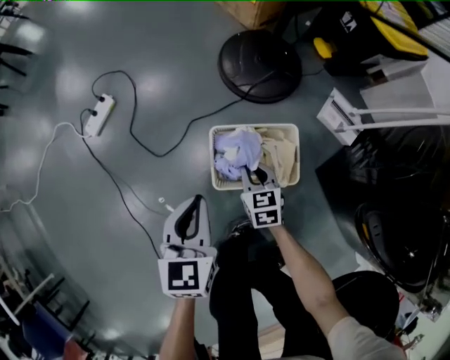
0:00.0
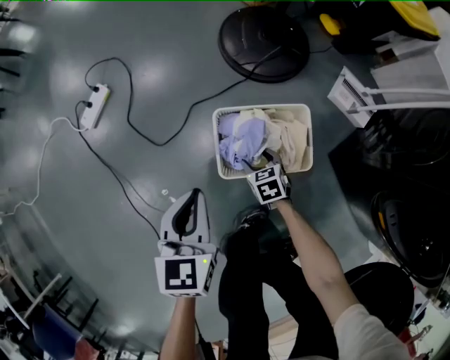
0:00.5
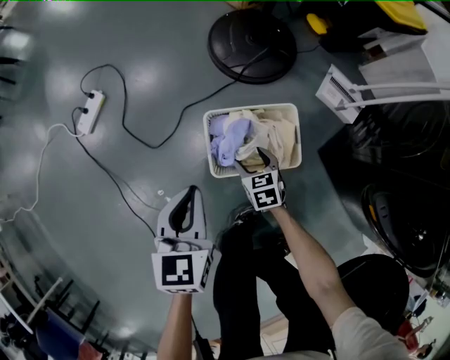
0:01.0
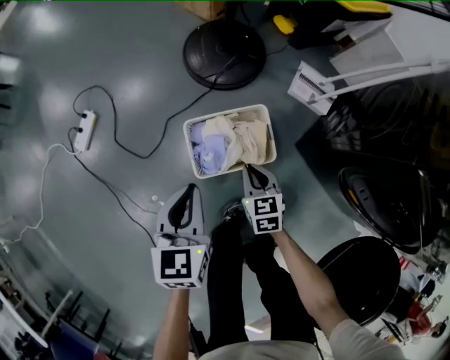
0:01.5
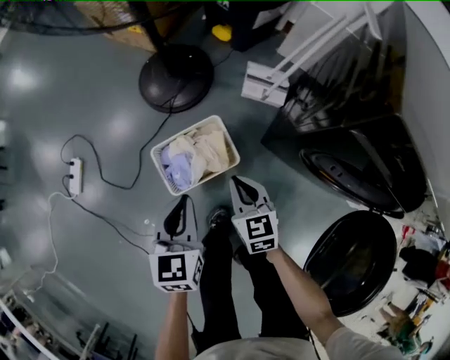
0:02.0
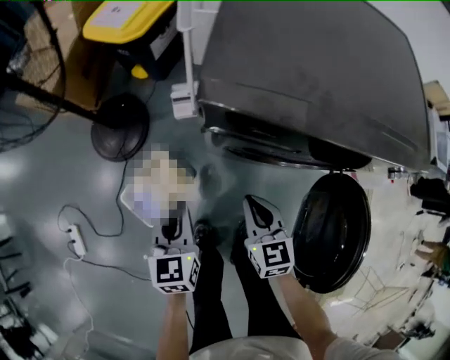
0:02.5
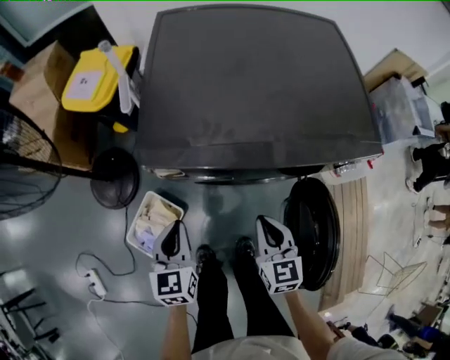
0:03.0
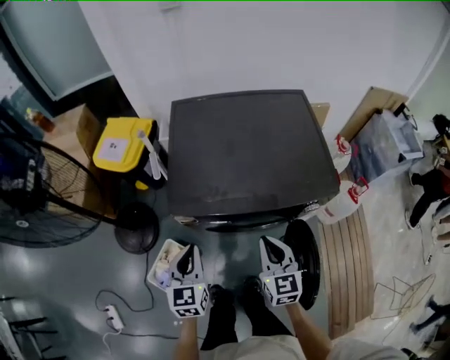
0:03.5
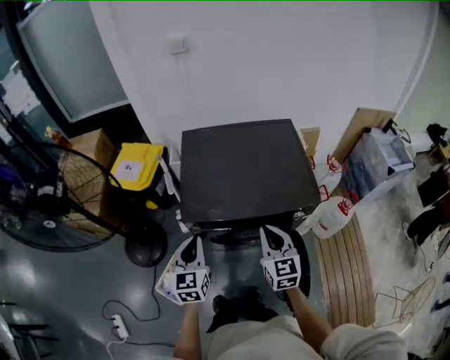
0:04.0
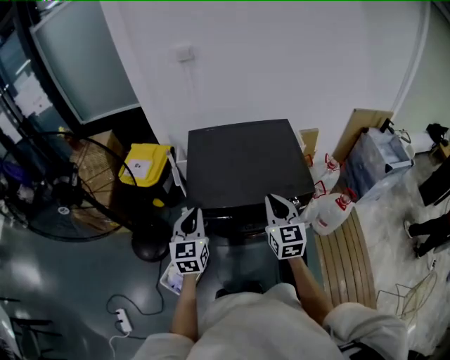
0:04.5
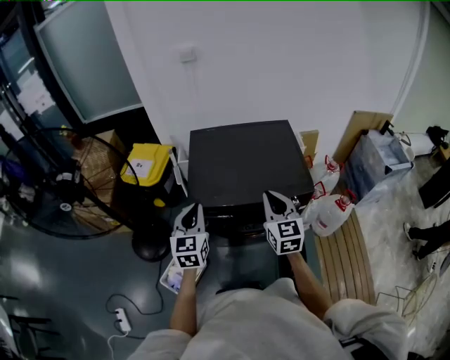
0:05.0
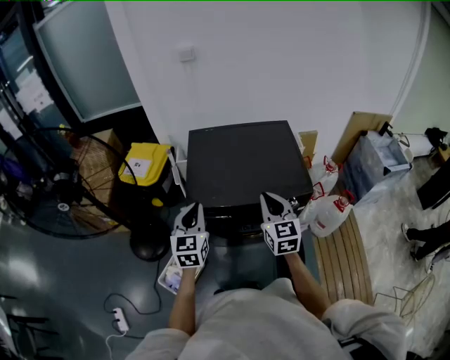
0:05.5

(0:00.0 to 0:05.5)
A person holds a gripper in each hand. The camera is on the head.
0:00.0 - 0:02.0: The right gripper is displaced upward by some 20 cm, swivels roughly 20 degrees, and opens, then closes again; the left gripper ends up some 20 cm from where it was, and swivels roughly 20 degrees.
0:02.0 - 0:03.5: The right gripper changes place by approximately 50 cm, and turns by some 50 degrees; the left gripper ends up approximately 40 cm from where it was, and swivels some 40 degrees.
0:03.5 - 0:05.5: The two grippers go some 20 cm upward.

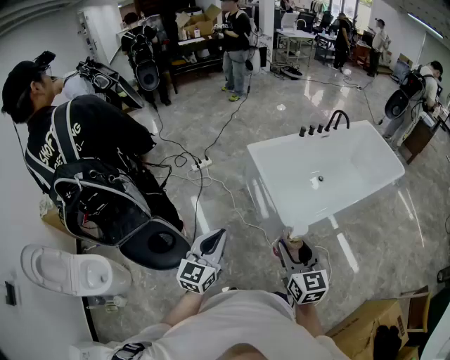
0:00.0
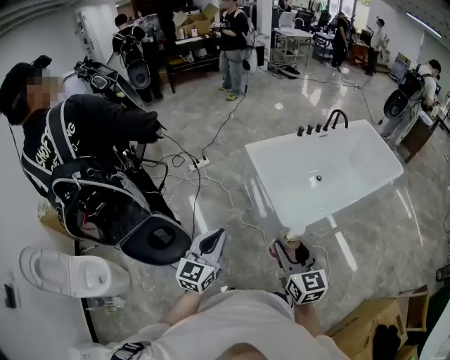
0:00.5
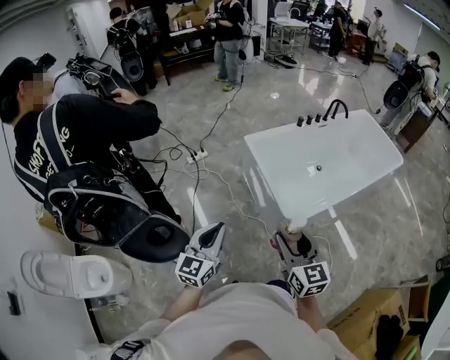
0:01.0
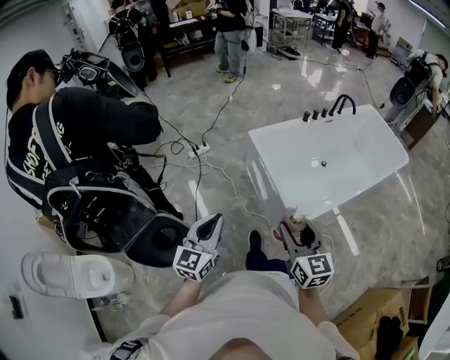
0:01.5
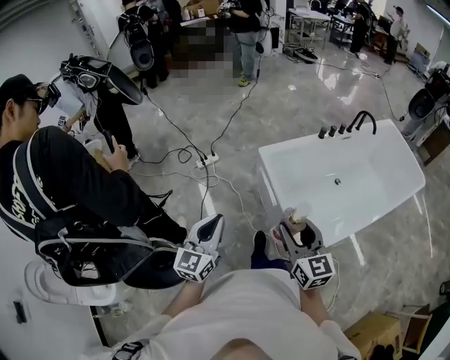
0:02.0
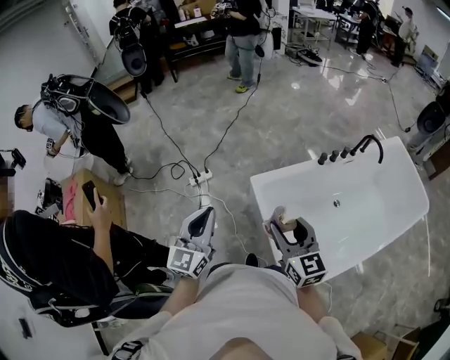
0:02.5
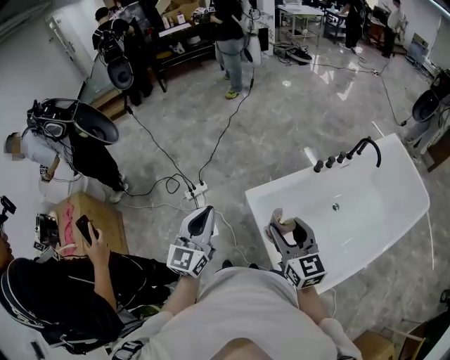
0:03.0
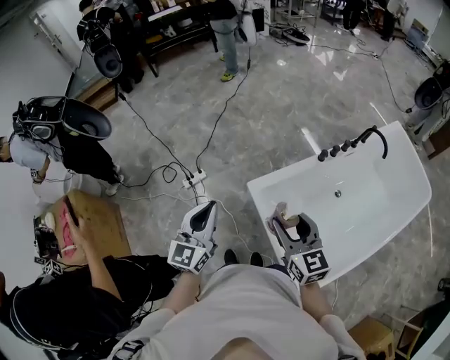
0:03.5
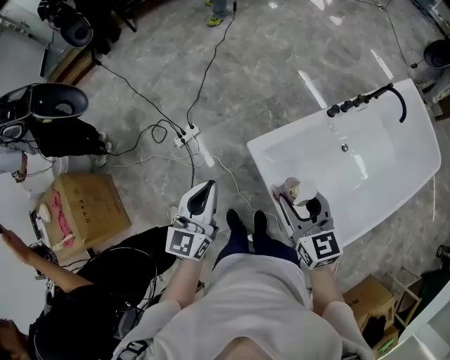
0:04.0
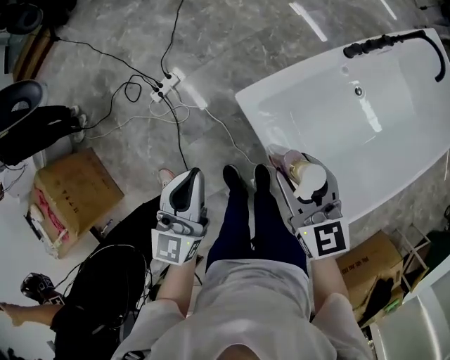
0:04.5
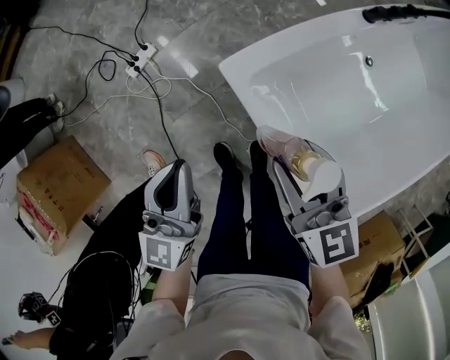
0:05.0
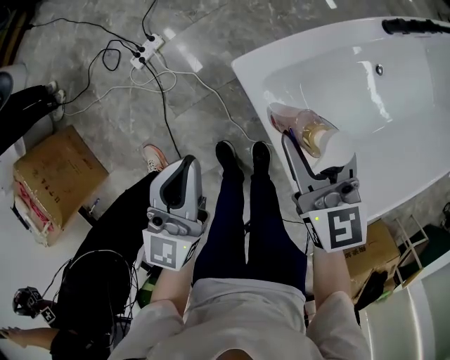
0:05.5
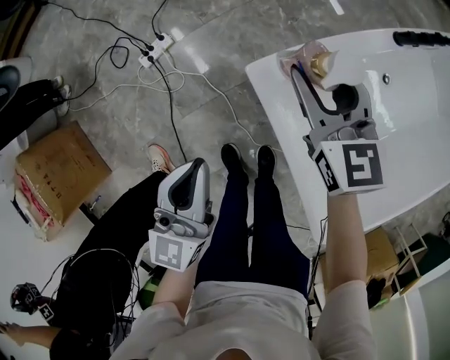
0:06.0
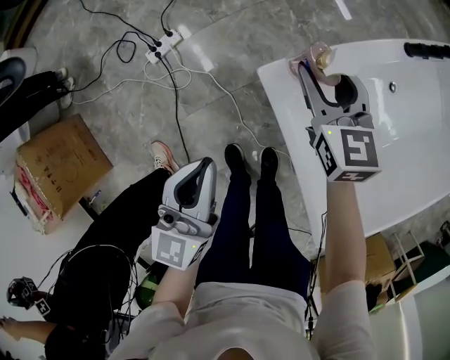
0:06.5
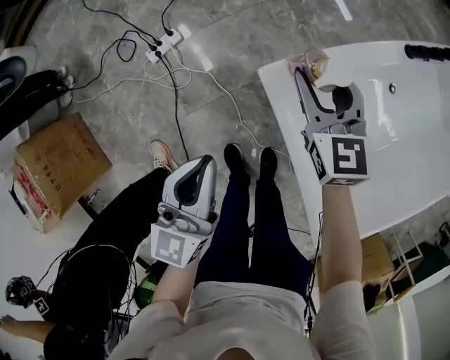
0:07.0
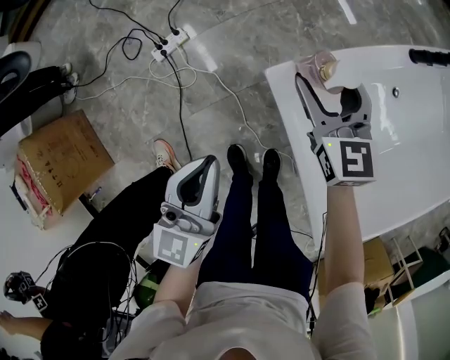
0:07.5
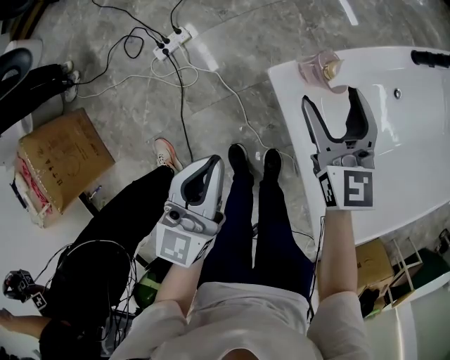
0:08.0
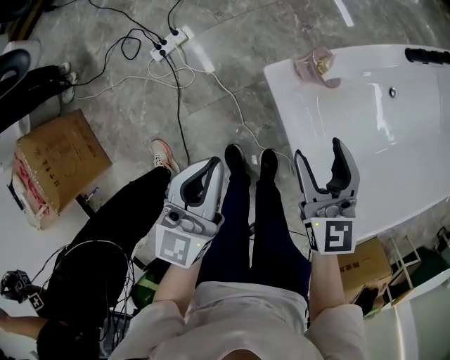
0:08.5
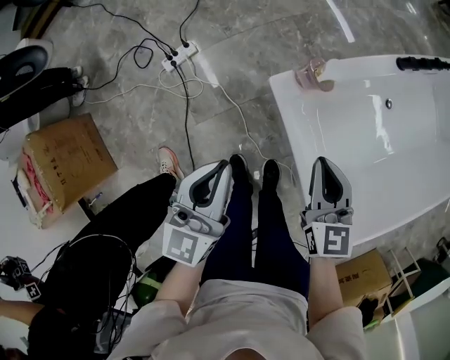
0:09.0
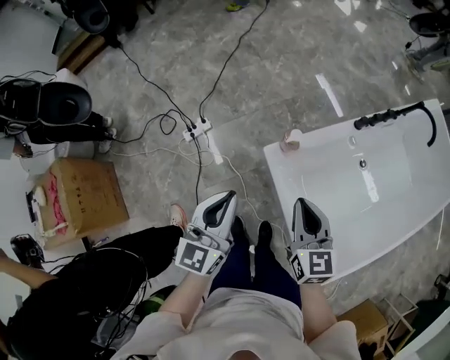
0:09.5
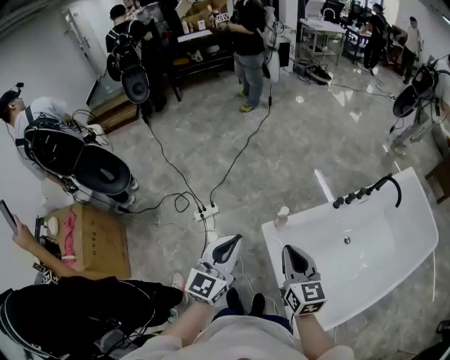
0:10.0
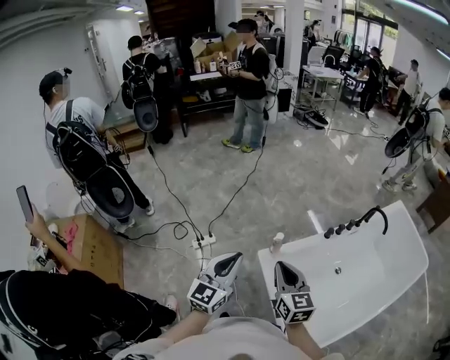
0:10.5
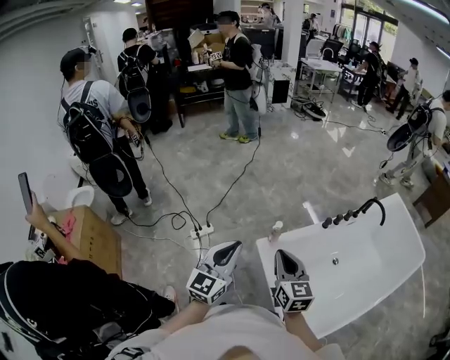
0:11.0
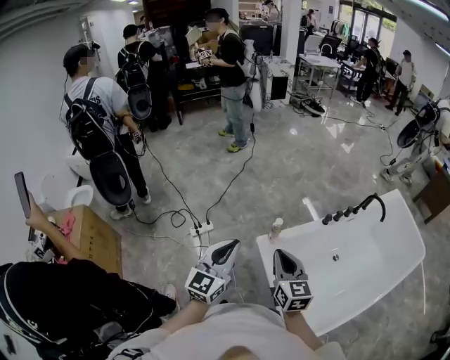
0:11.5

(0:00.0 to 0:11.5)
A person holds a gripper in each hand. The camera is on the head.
0:00.0 - 0:02.0: The grippers both shift forward by roughly 25 cm.
0:02.0 - 0:04.0: The two grippers go about 40 cm forward.
0:04.0 - 0:06.0: The right gripper travels downward and forward by some 35 cm. The left gripper travels downward by approximately 25 cm.
0:06.0 - 0:07.5: There are only small adjustments of the grippers.
0:07.5 - 0:09.5: The left gripper moves upward, approximately 20 cm. The right gripper moves upward and backward, roughly 25 cm, and closes its fingers.
0:09.5 - 0:11.5: The right gripper moves upward, approximately 20 cm; the left gripper travels upward and backward by roughly 20 cm.

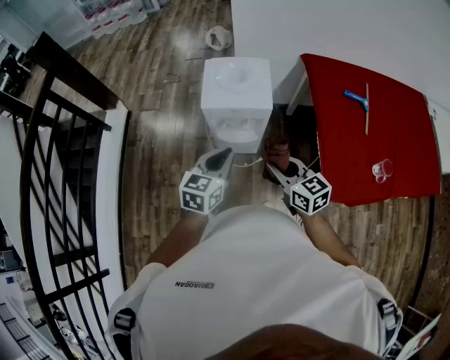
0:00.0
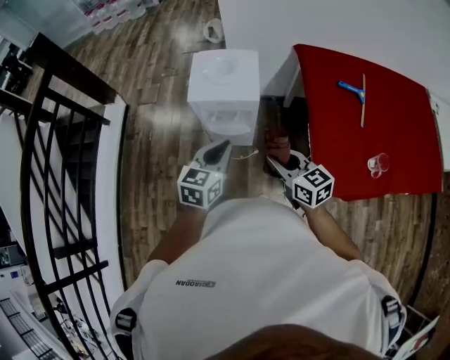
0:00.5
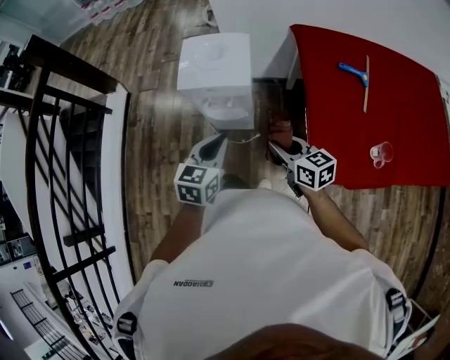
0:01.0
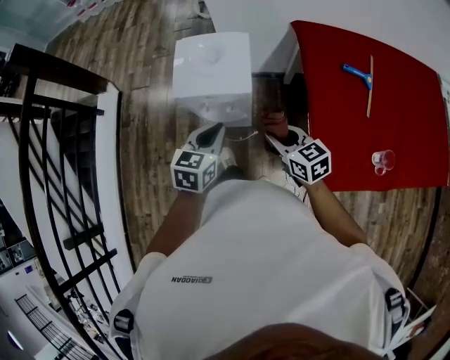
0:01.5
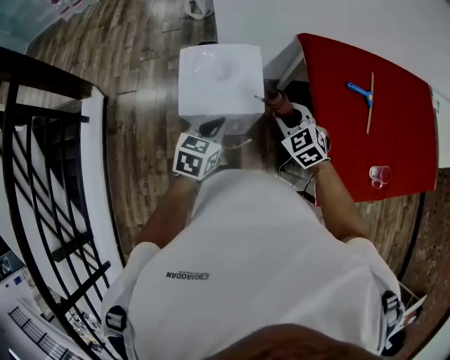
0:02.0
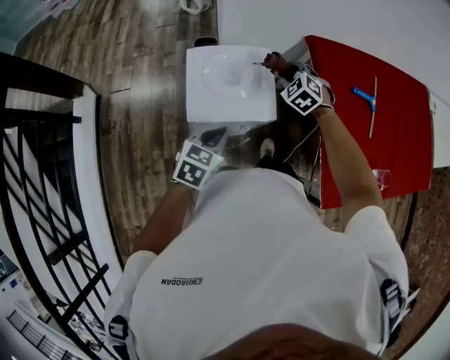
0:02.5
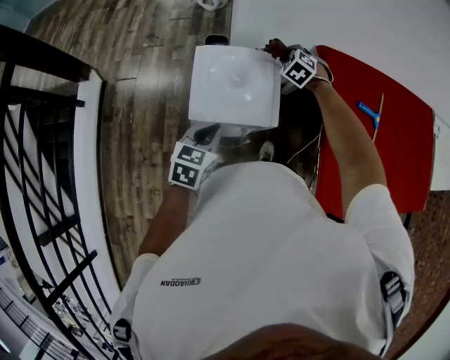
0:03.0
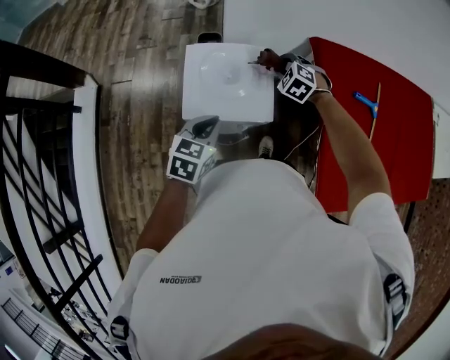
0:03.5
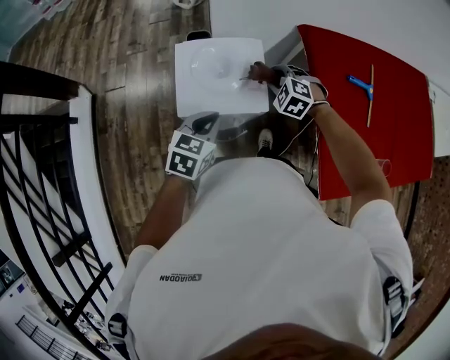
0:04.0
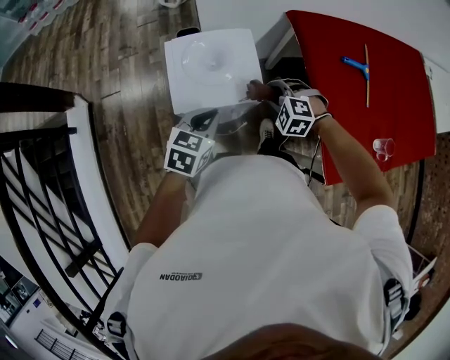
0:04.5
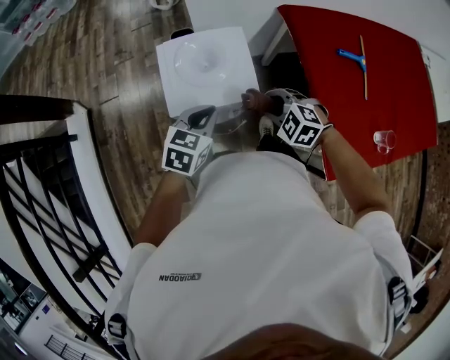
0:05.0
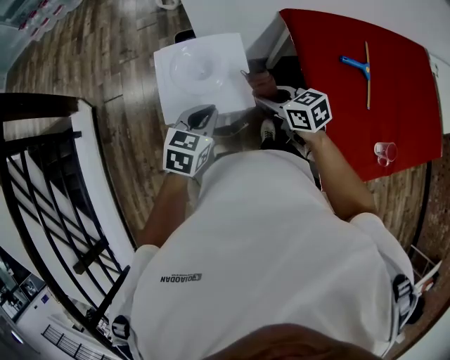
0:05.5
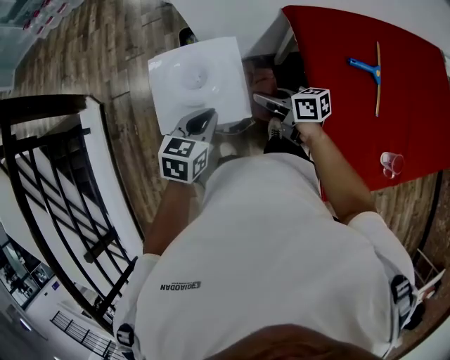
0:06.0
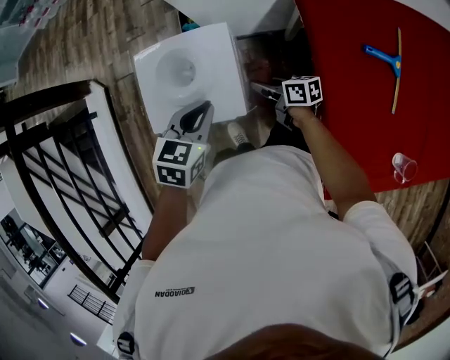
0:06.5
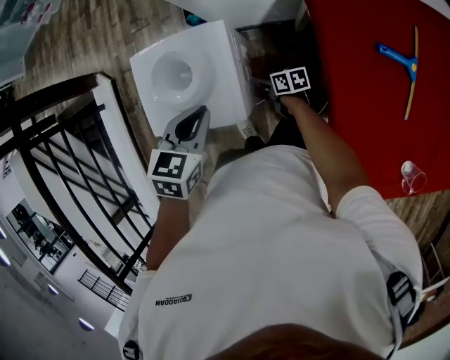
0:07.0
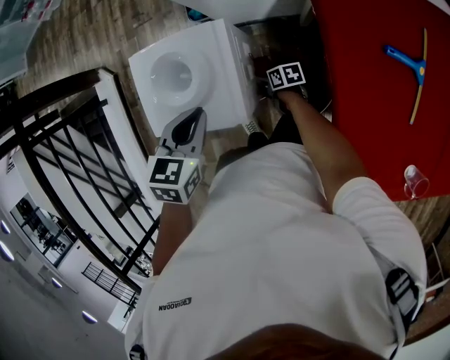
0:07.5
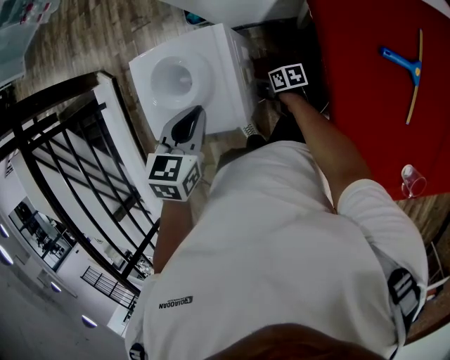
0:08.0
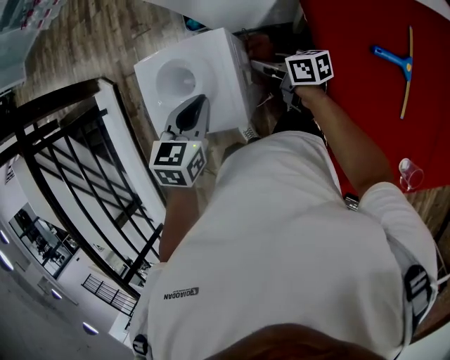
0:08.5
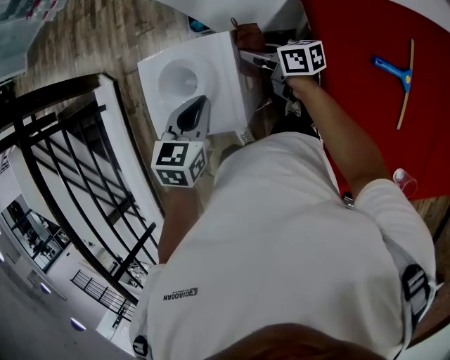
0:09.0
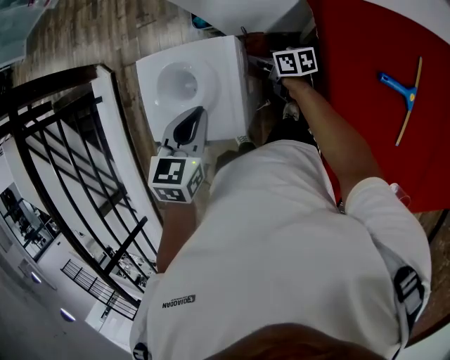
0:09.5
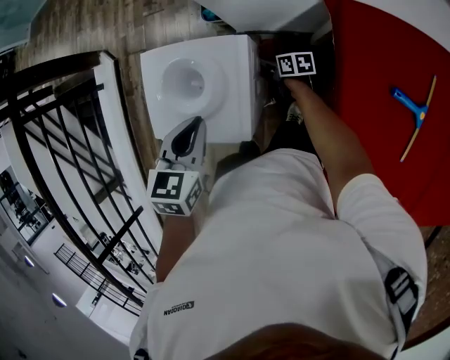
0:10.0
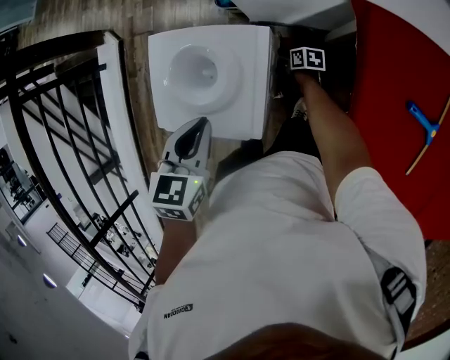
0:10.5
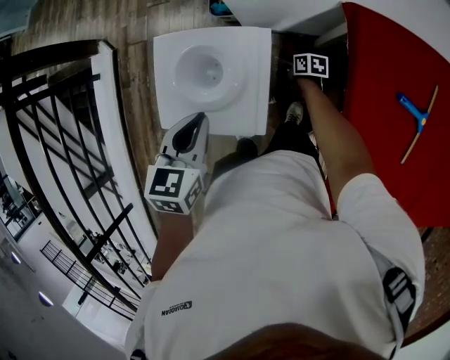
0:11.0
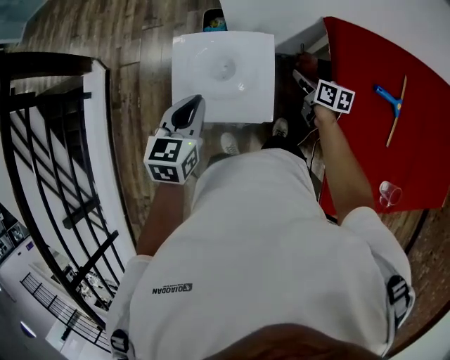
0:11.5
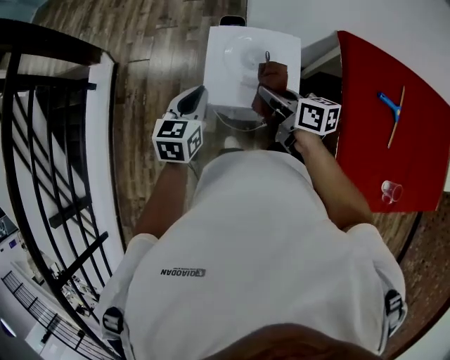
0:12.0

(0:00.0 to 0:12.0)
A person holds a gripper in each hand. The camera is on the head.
0:00.0 - 0:02.0: Both grippers travel together forward, some 20 cm. The right gripper turns by about 40 degrees.
0:02.0 - 0:04.0: The right gripper travels forward and downward by about 15 cm, and rotates about 30 degrees.
0:04.0 - 0:06.0: The left gripper goes approximately 10 cm to the right and forward, while the right gripper travels backward and back again, some 15 cm each way, and twists some 80 degrees clockwise, seen from behind.
0:06.0 - 0:08.0: The right gripper shifts some 30 cm downward, and turns by about 30 degrees.
0:08.0 - 0:10.0: The right gripper moves forward, some 10 cm, and moves some 25 cm upward and comes back.
0:10.0 - 0:12.0: The right gripper moves upward and to the left, approximately 40 cm, and swivels roughly 20 degrees; the left gripper goes roughly 20 cm to the left.
